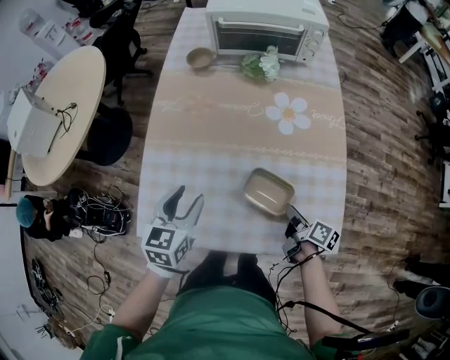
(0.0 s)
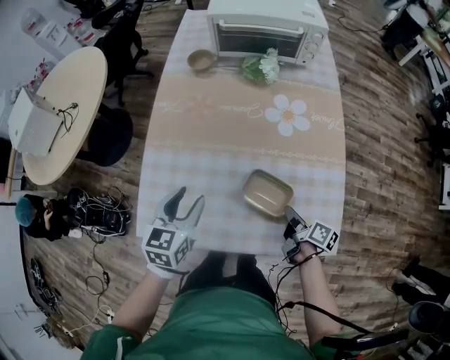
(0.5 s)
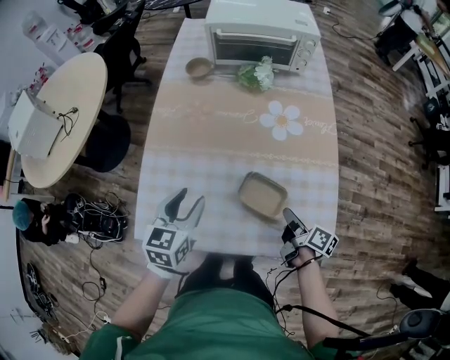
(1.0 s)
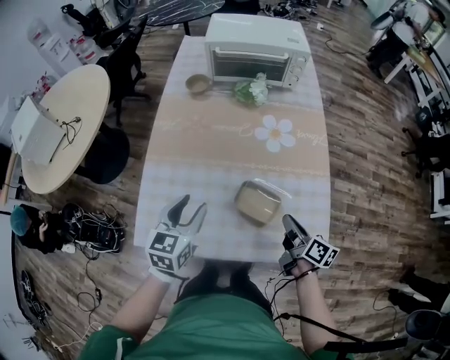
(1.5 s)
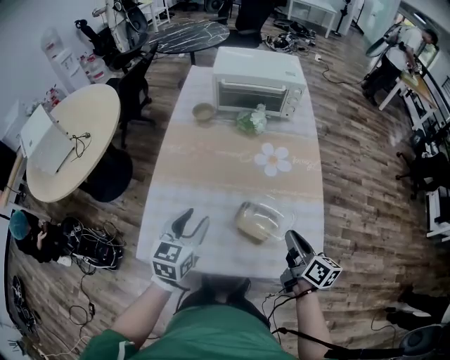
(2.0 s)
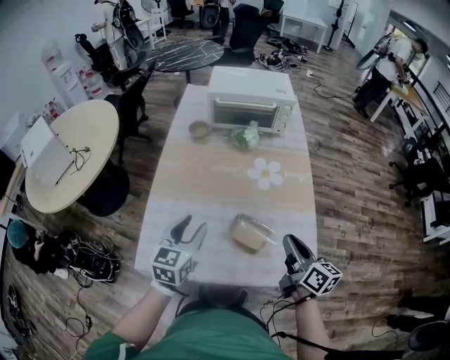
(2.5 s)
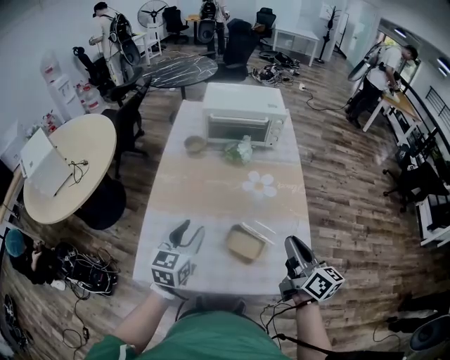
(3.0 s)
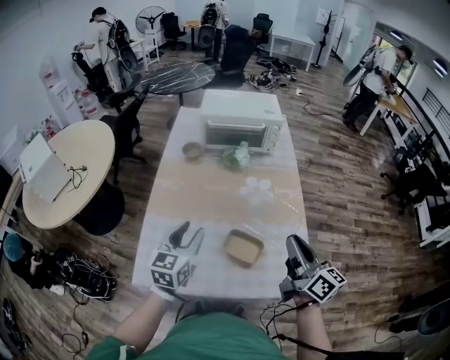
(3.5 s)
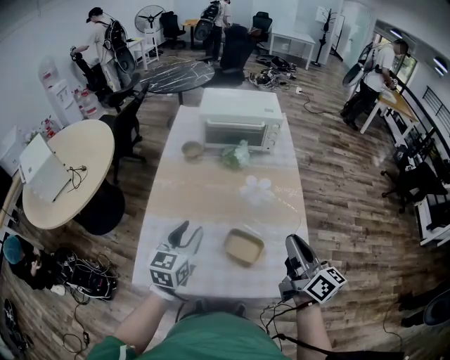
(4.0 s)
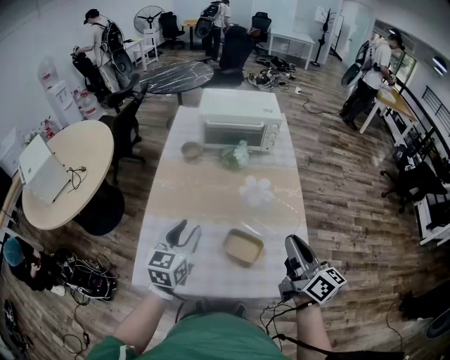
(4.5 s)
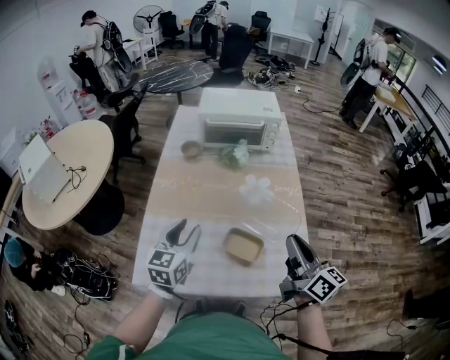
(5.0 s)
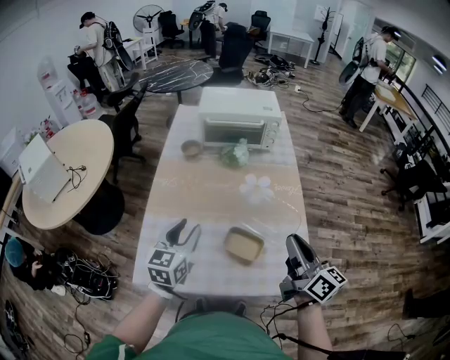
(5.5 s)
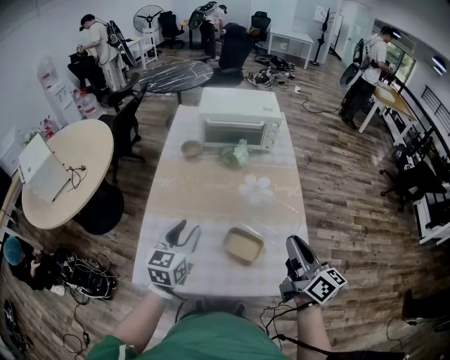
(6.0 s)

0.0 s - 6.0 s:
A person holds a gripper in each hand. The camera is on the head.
0.0 s - 2.0 s: The left gripper goes approximately 10 cm upward; the right gripper shifts approximately 20 cm upward, and swivels about 30 degrees.
2.0 s - 4.0 s: The left gripper goes roughly 5 cm upward. The right gripper goes roughly 15 cm upward, and changes its angle by some 20 degrees.
4.0 s - 6.0 s: The two grippers keep their place.

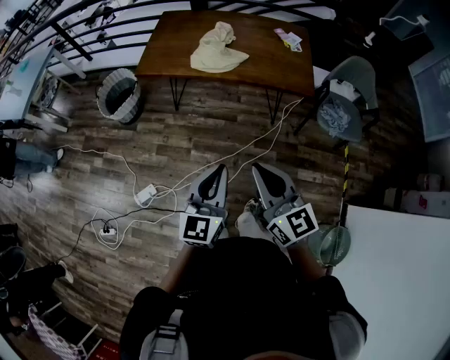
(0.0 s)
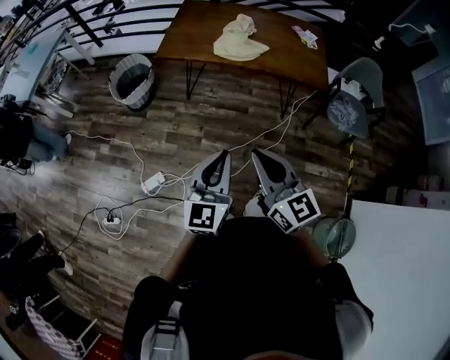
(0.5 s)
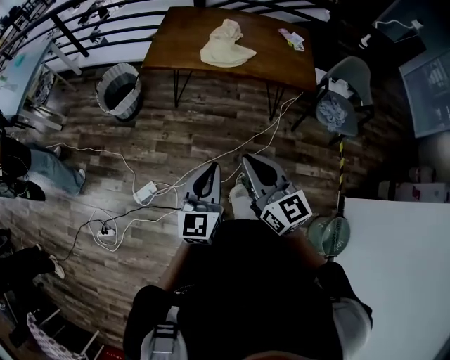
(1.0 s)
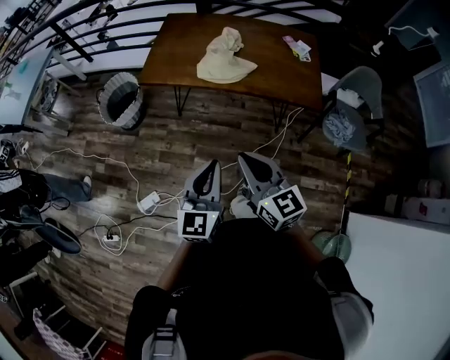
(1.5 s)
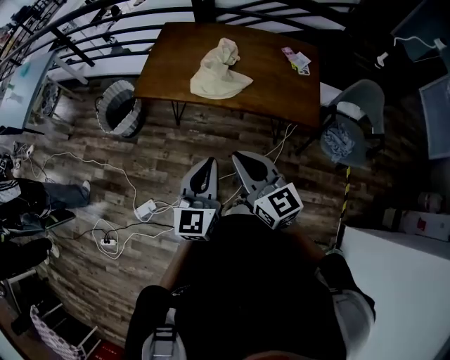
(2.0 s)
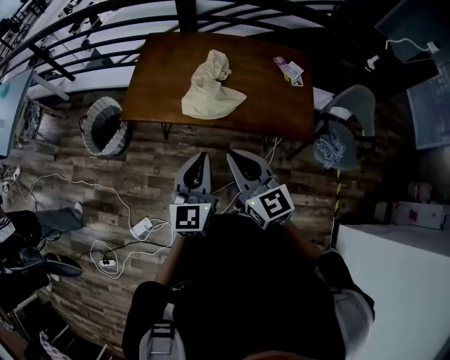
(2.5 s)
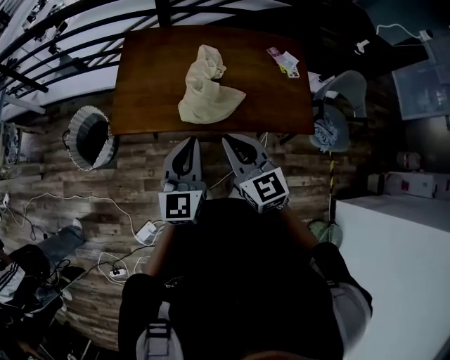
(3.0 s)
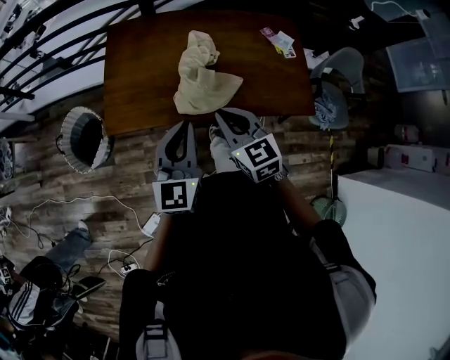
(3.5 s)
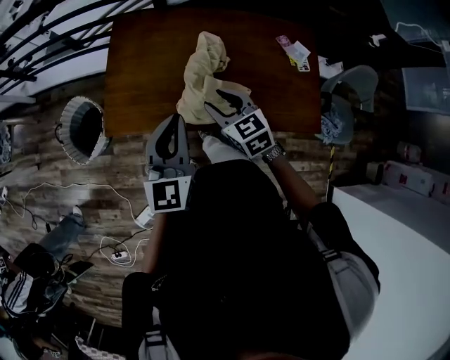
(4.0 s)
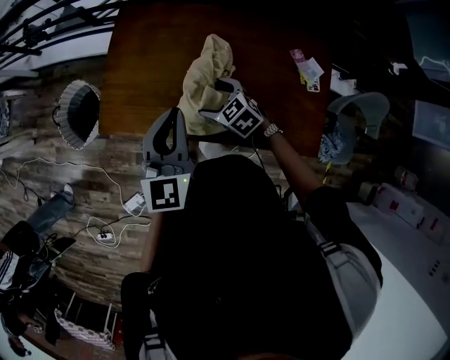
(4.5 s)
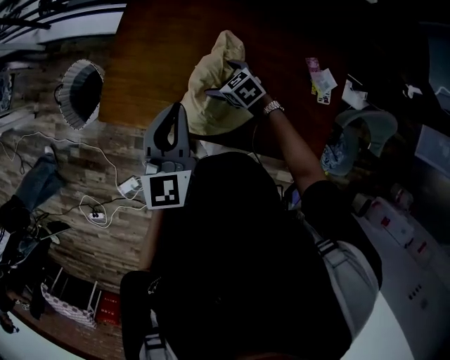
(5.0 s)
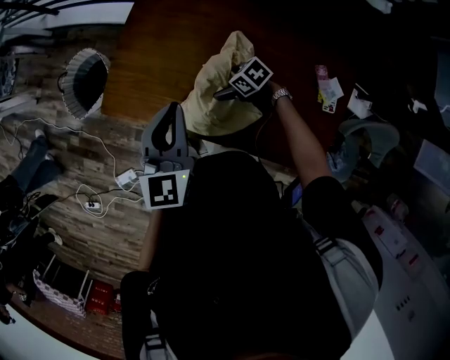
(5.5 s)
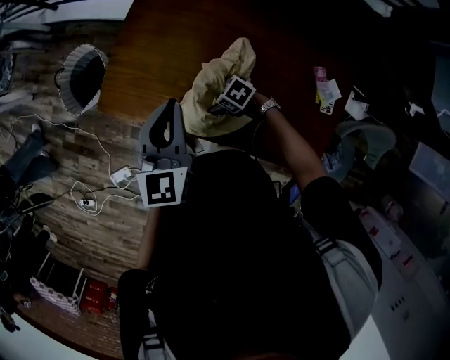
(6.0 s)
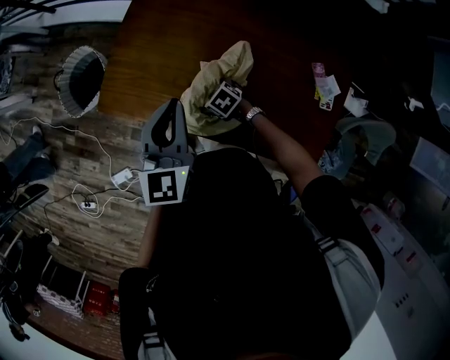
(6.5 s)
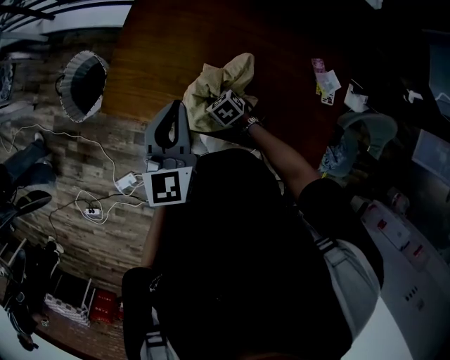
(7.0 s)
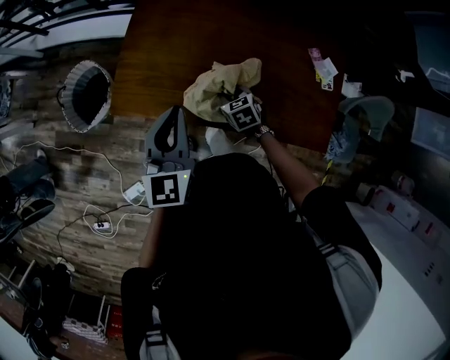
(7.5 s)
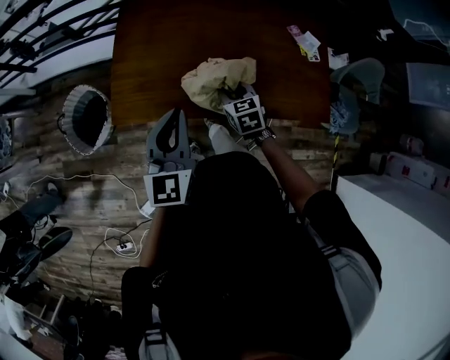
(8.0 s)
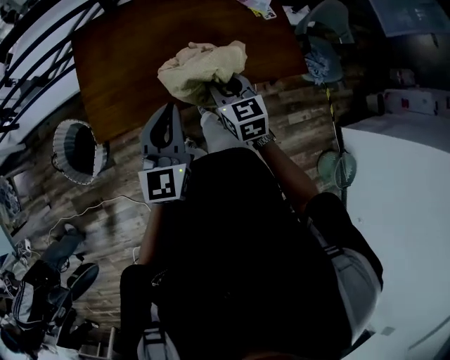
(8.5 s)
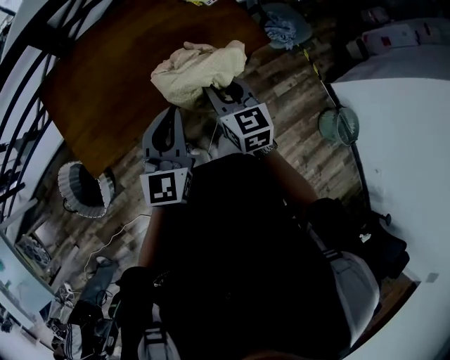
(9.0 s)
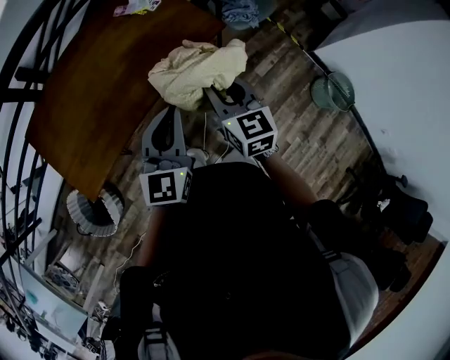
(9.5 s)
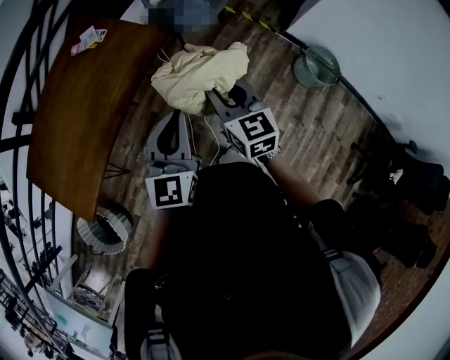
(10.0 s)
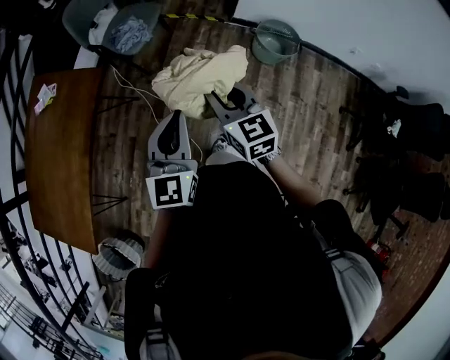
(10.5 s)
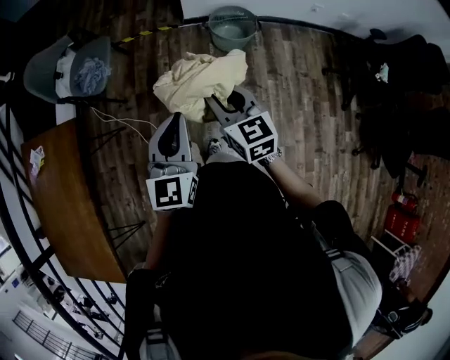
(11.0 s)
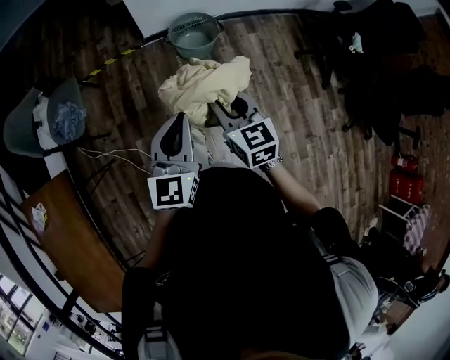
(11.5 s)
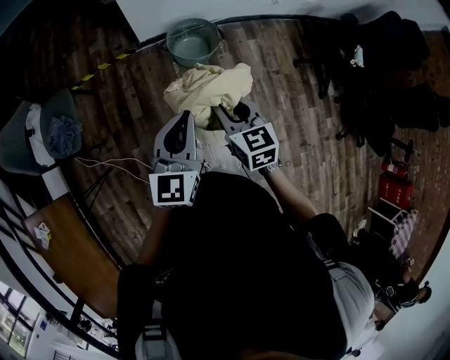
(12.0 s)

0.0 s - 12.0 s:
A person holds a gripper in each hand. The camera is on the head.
0.0 s - 2.0 s: The grippers both shift forward by approximately 20 cm.
2.0 s - 4.0 s: The grippers both shift forward by approximately 40 cm. The right gripper turns by approximately 30 degrees.
4.0 s - 6.0 s: The right gripper is displaced downward by about 25 cm, turns by roughly 60 degrees, and opens its fingers. Meanwhile the left gripper changes place by about 10 cm, and rotates some 20 degrees.
6.0 s - 8.0 s: The right gripper shifts some 15 cm upward, swivels about 60 degrees, and closes up; the left gripper changes place by roughly 15 cm, and turns by some 20 degrees.
8.0 s - 10.0 s: The two grippers travel together, approximately 50 cm. The right gripper swivels approximately 60 degrees. The left gripper turns by approximately 60 degrees.
10.0 s - 12.0 s: The two grippers travel together, approximately 50 cm. The left gripper rotates roughly 50 degrees; the right gripper turns by some 50 degrees.

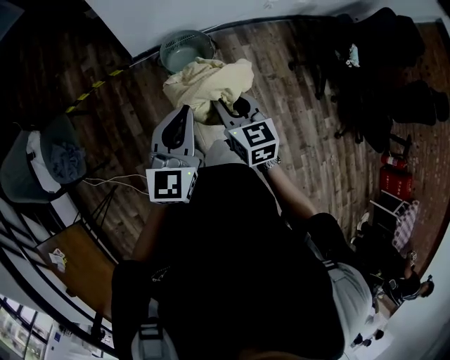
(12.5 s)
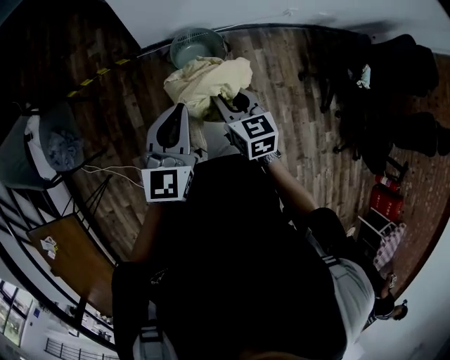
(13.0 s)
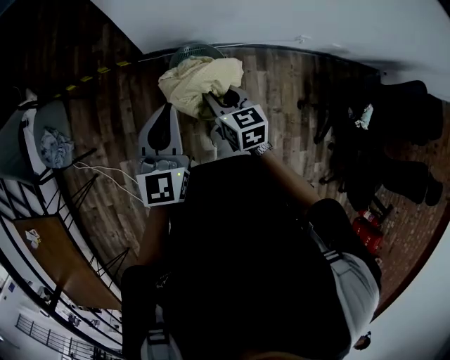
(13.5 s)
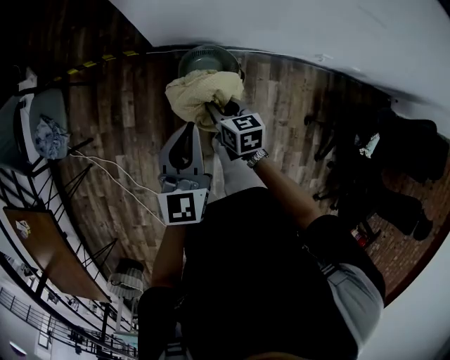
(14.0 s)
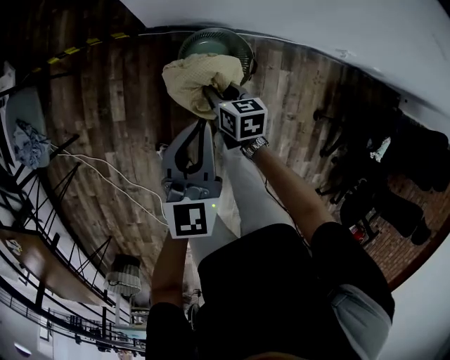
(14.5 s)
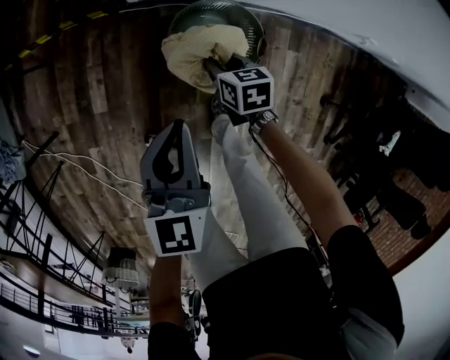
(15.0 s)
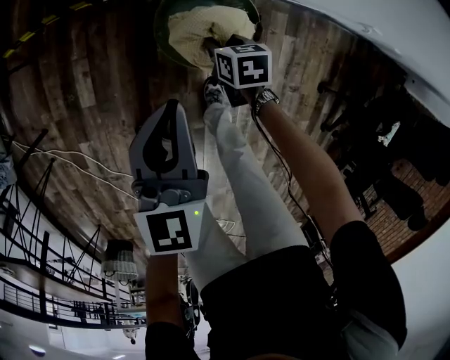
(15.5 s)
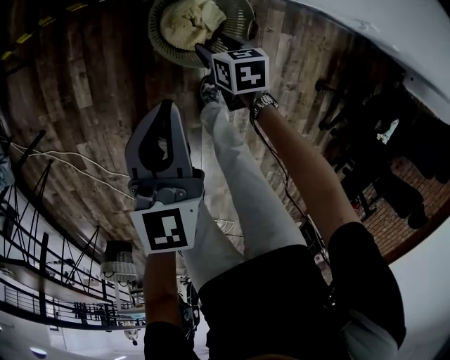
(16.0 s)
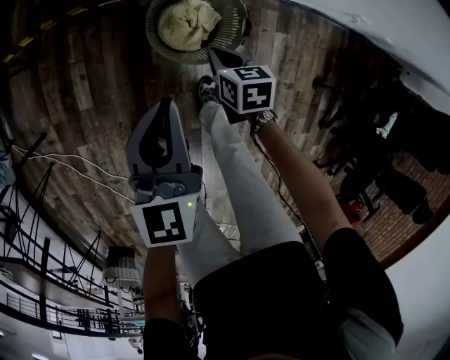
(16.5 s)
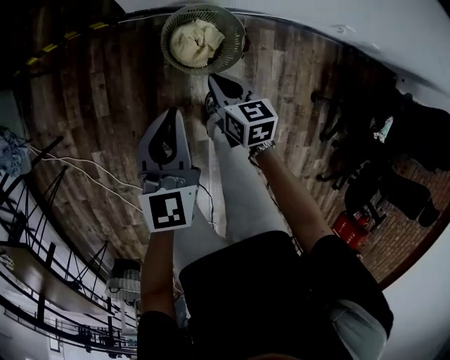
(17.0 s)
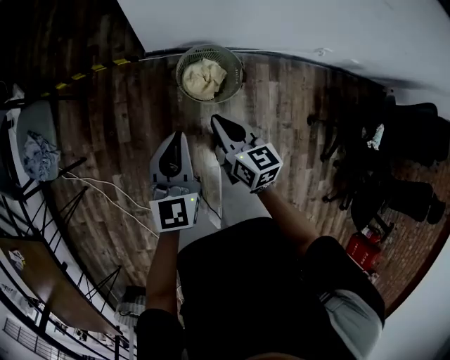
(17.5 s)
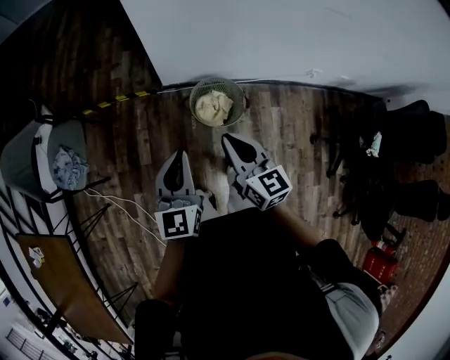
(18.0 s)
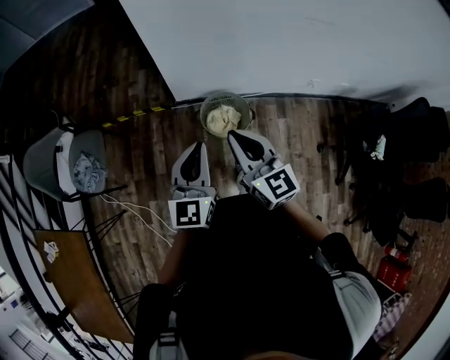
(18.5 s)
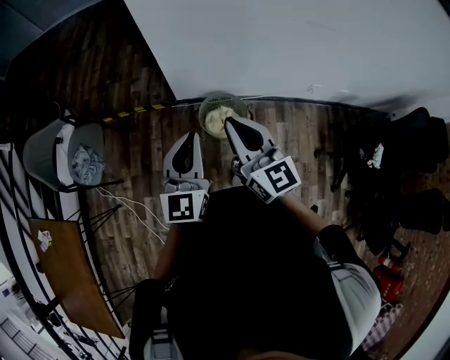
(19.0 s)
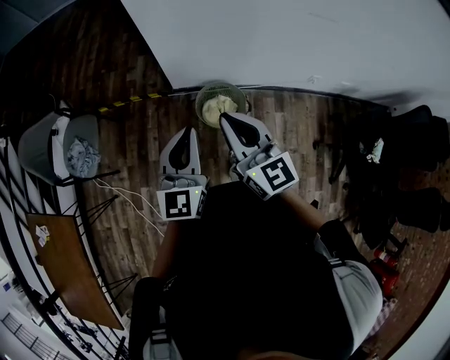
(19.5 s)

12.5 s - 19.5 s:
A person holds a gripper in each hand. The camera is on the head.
12.5 s - 14.5 s: The left gripper shifts by approximately 35 cm, and turns by approximately 30 degrees; the right gripper travels downward by about 35 cm, and rotates about 30 degrees.
14.5 s - 16.0 s: Both grippers move downward, roughly 15 cm.
16.0 s - 17.5 s: The right gripper is displaced upward by roughly 35 cm, tips its fingers upward by about 30 degrees, and closes up. The left gripper moves upward, backward and to the left, approximately 20 cm.
17.5 s - 19.5 s: Both grippers move upward, roughly 30 cm. The right gripper swivels roughly 30 degrees.

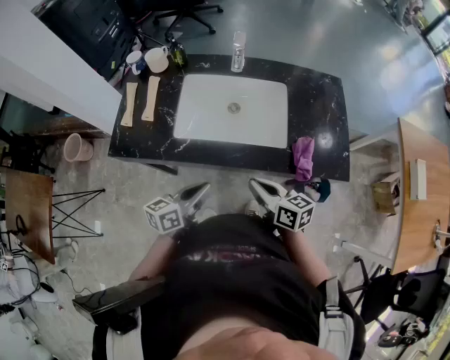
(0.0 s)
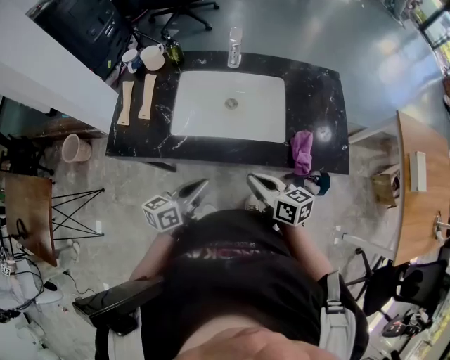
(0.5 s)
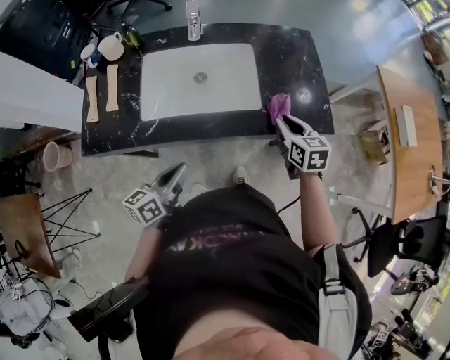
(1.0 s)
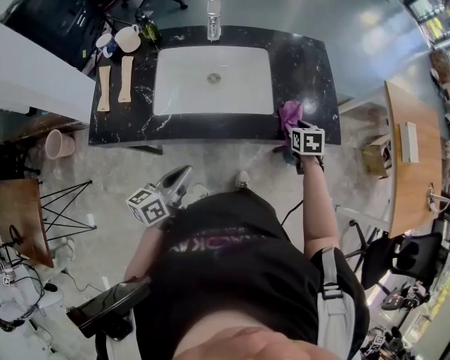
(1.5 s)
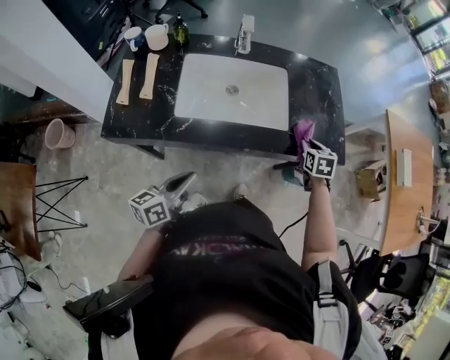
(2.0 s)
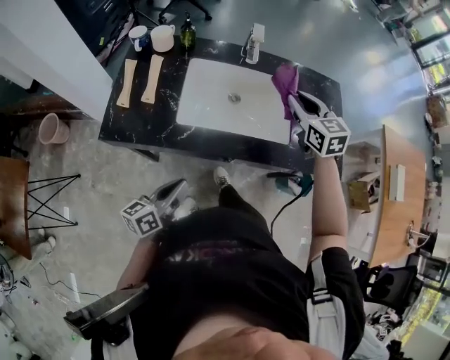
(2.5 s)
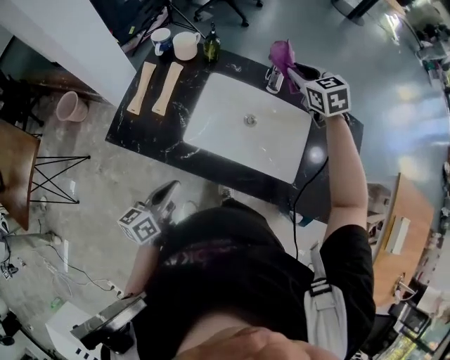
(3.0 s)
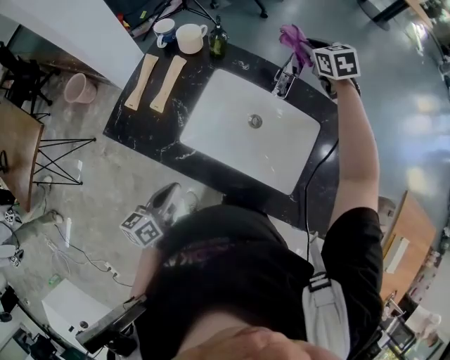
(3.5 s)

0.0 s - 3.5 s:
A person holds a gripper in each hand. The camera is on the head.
0.0 s - 2.0 s: The right gripper ends up some 25 cm from where it was, tilts its fingers about 30 degrees downward, and opens and closes again. The left gripper changes place by some 5 cm.
2.0 s - 3.5 s: The right gripper changes place by about 60 cm, and changes its angle by roughly 50 degrees. Meanwhile the left gripper shifts by about 10 cm, and turns by some 30 degrees.
